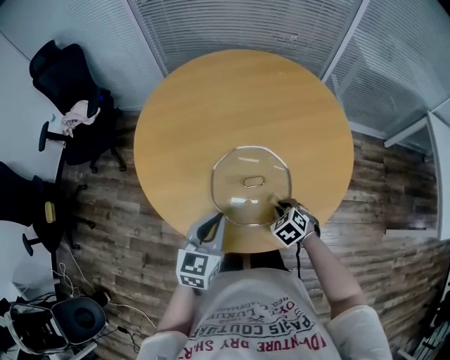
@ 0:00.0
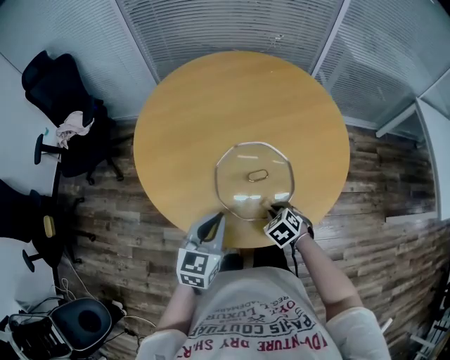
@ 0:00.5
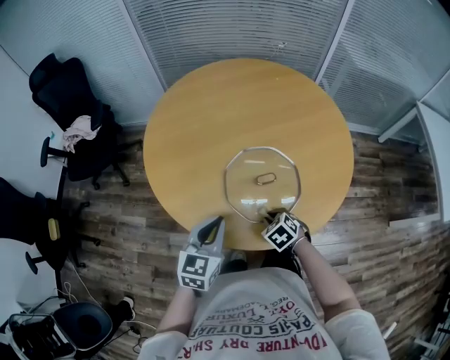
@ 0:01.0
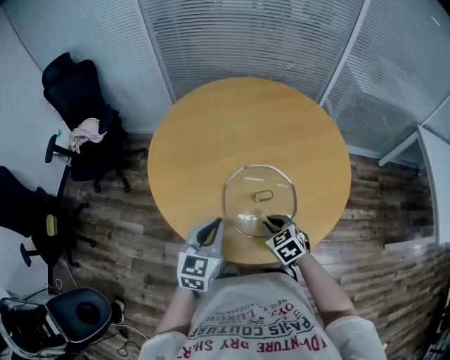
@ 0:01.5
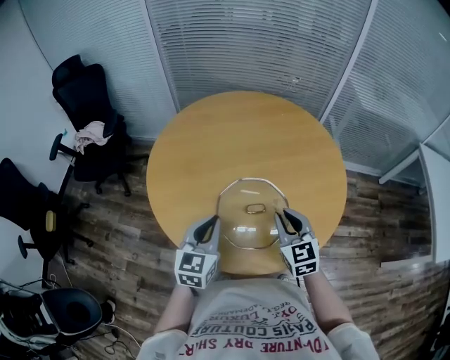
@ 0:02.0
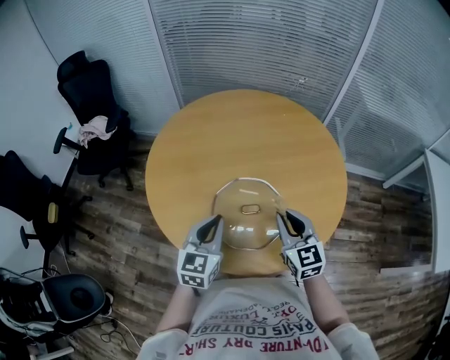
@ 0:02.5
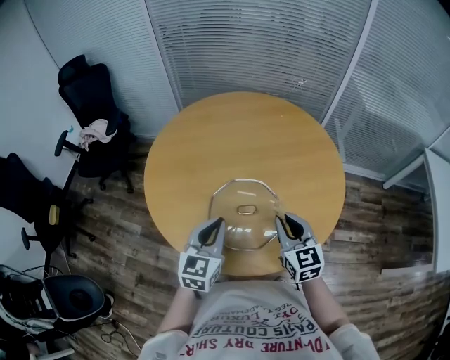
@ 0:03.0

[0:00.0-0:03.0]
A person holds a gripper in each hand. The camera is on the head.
0:00.0 to 0:01.5: The right gripper travels to the left and upward by approximately 10 cm. Meanwhile the left gripper travels to the left by roughly 5 cm.
0:01.5 to 0:03.0: The right gripper is displaced upward and to the right by approximately 20 cm, and tilts its fingers approximately 30 degrees upward. Meanwhile the left gripper travels to the right by approximately 10 cm.

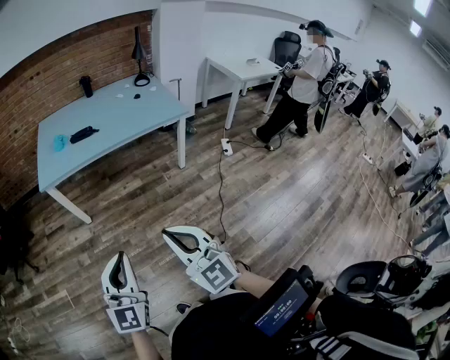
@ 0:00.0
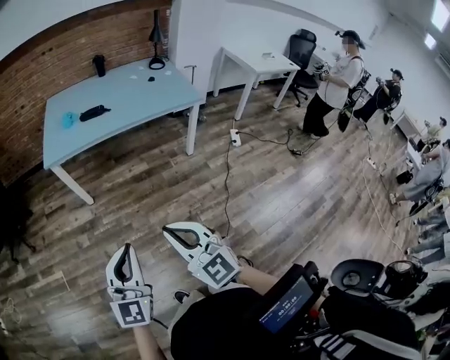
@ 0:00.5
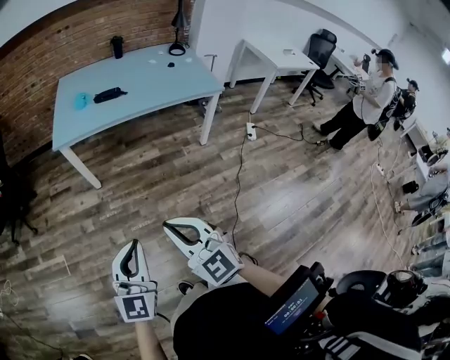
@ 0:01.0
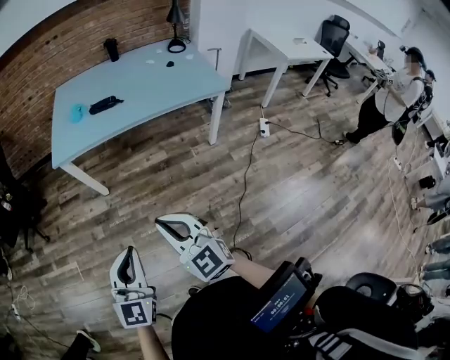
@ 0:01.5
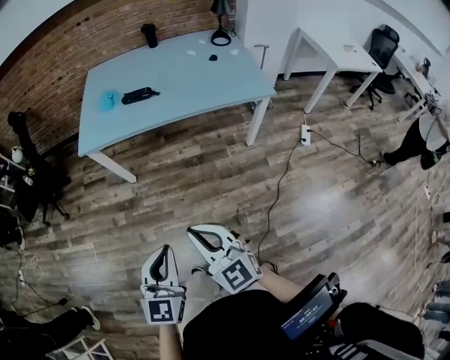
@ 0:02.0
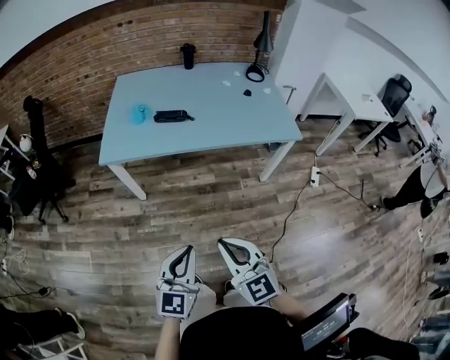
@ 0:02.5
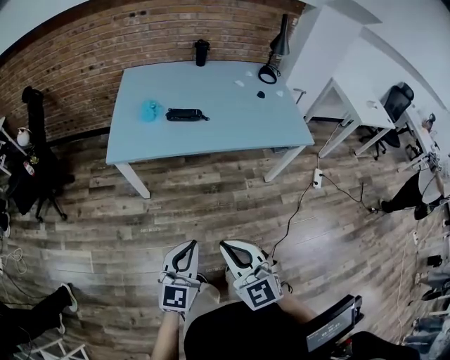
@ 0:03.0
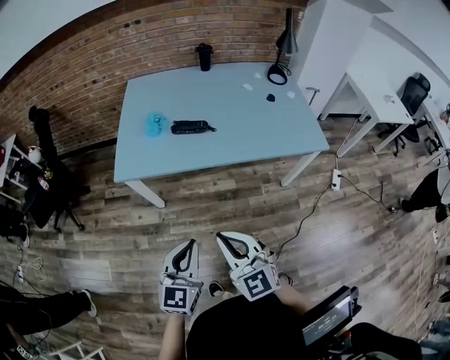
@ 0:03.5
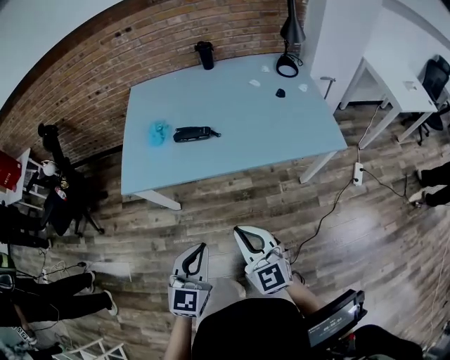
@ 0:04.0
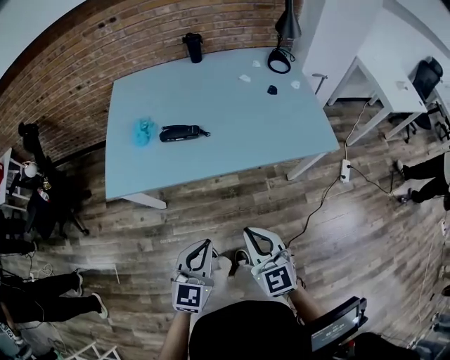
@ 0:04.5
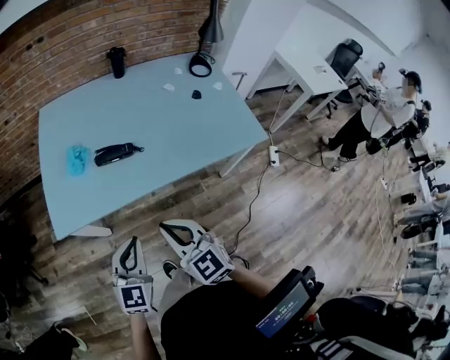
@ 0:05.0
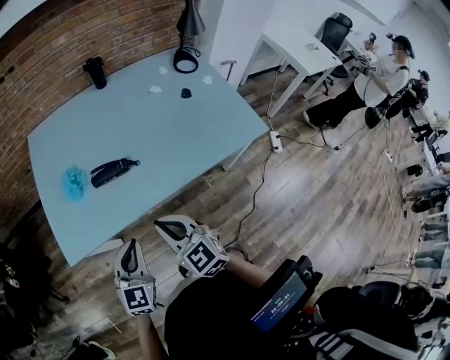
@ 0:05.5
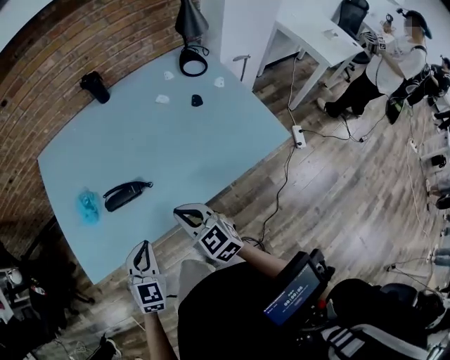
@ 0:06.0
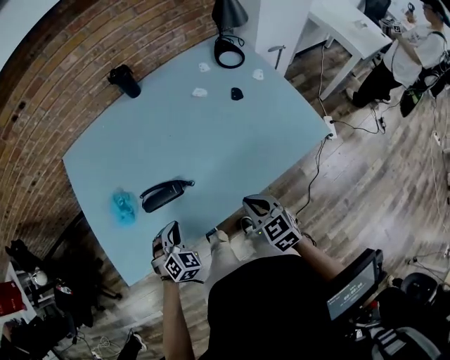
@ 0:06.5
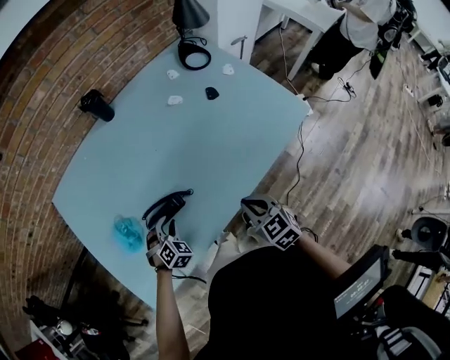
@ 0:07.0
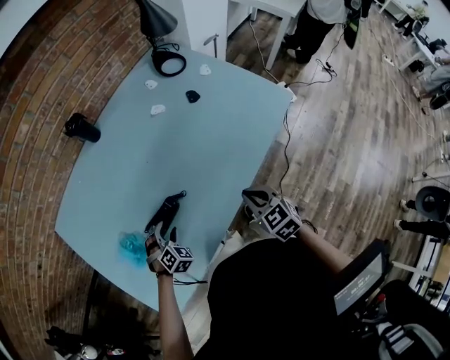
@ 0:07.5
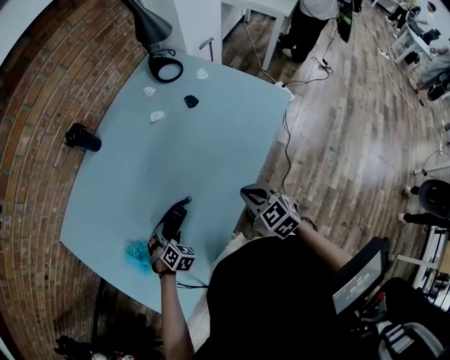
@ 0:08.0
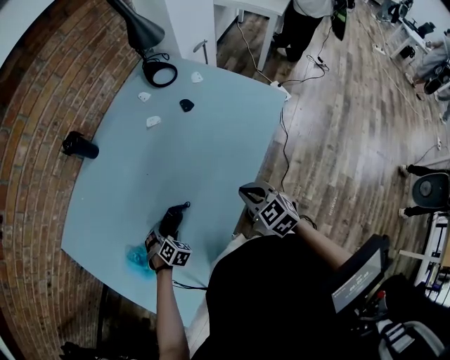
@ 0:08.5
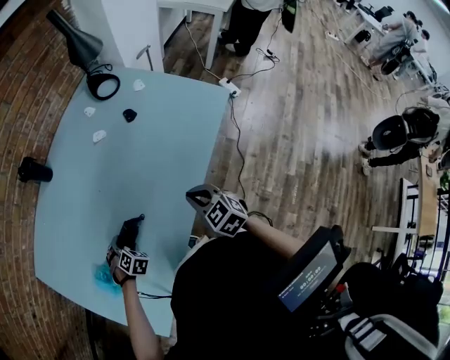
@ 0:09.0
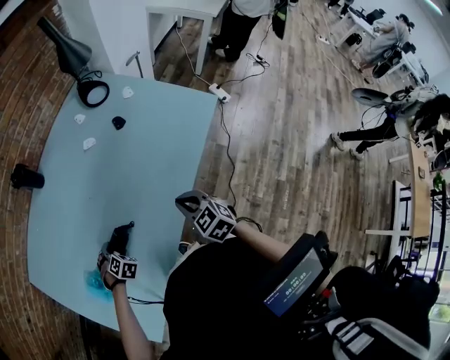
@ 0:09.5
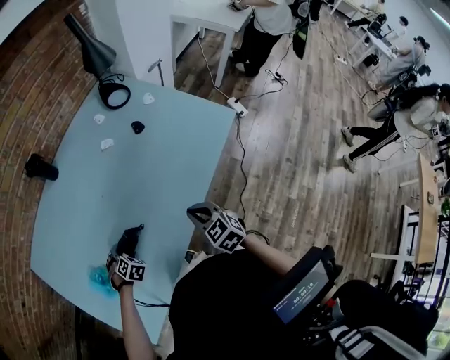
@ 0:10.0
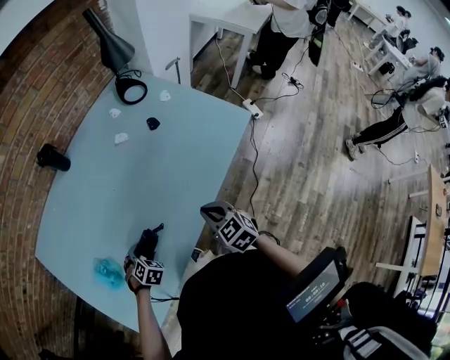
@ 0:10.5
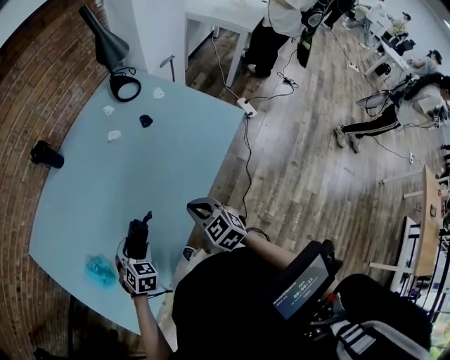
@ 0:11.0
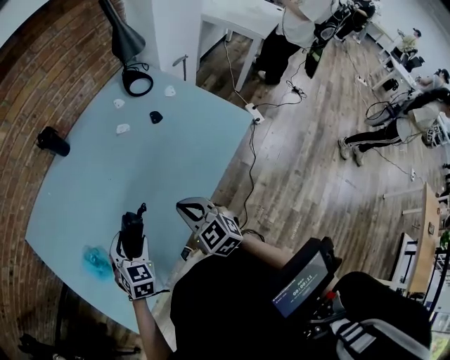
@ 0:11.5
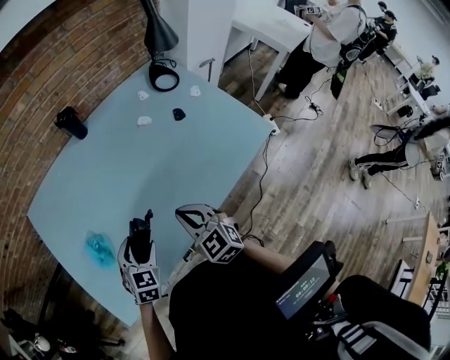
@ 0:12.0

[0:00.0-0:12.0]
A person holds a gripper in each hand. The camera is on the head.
0:00.0 to 0:02.0: The grippers both shift forward and downward by approximately 20 cm. The right gripper swivels roughly 20 degrees.
0:02.0 to 0:04.0: Both grippers move forward, some 30 cm.
0:04.0 to 0:06.0: Both grippers move forward, about 30 cm. The left gripper rotates some 20 degrees.
0:06.0 to 0:08.0: The left gripper travels forward, downward and to the left by some 30 cm, rotates around the line of its fingers by approximately 40 degrees, clockwise from behind, and opens, while the right gripper moves downward, about 5 cm, and changes its angle by some 40 degrees.
0:08.0 to 0:10.0: The grippers stay close to where they were, moving slightly.
0:10.0 to 0:12.0: The right gripper travels to the left and upward by some 15 cm, and rotates some 20 degrees. Meanwhile the left gripper moves upward and backward, approximately 20 cm, and changes its angle by roughly 50 degrees.

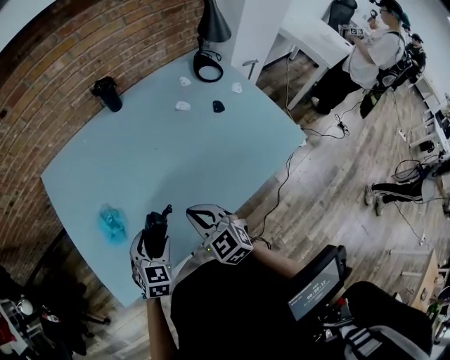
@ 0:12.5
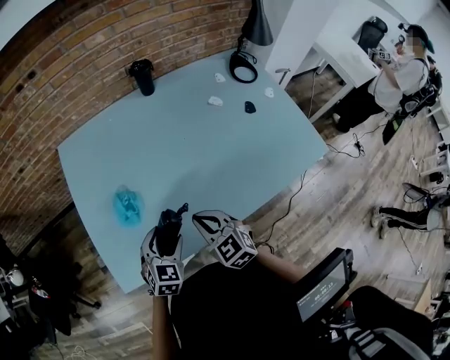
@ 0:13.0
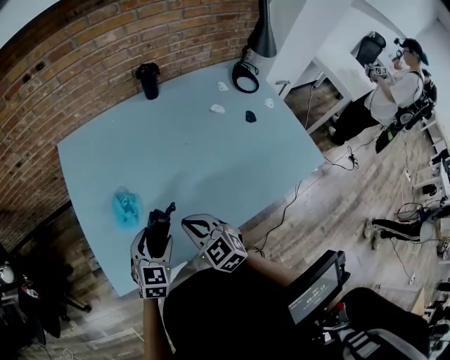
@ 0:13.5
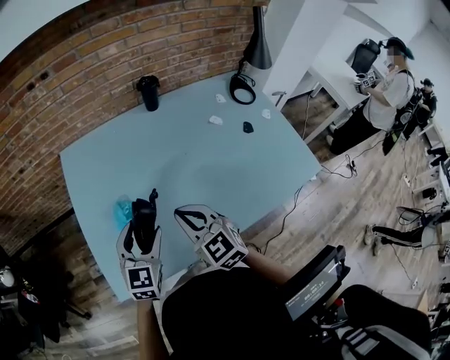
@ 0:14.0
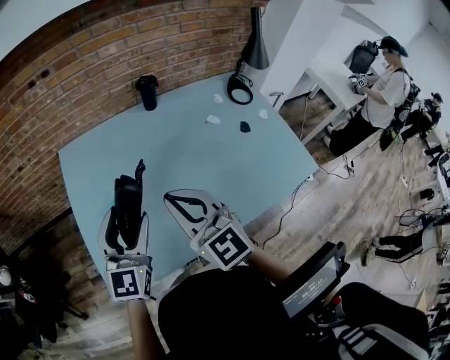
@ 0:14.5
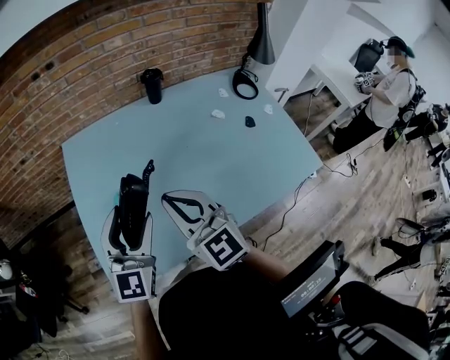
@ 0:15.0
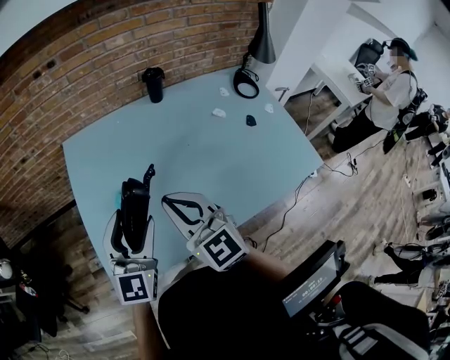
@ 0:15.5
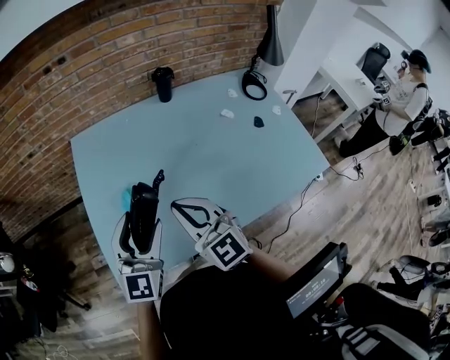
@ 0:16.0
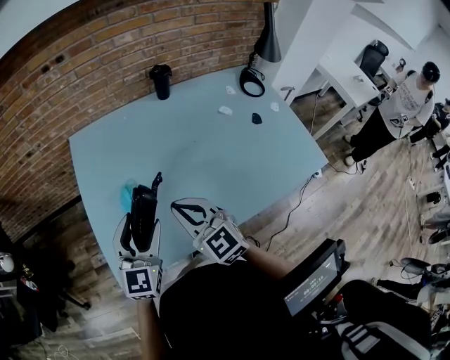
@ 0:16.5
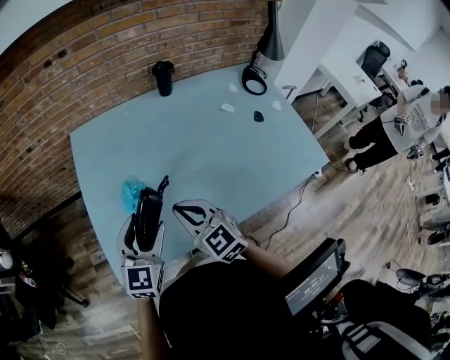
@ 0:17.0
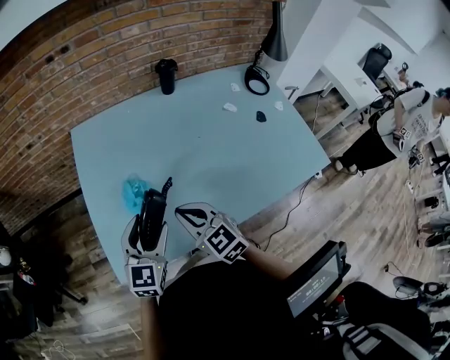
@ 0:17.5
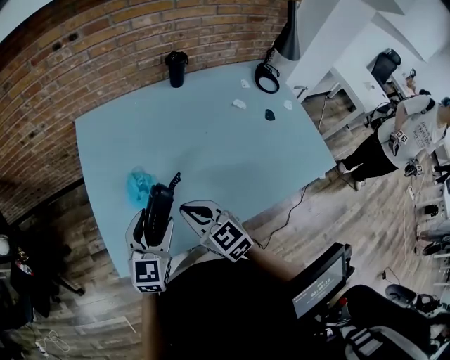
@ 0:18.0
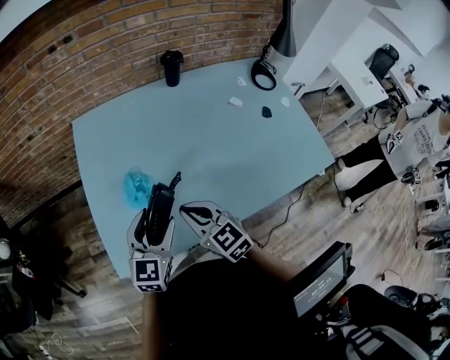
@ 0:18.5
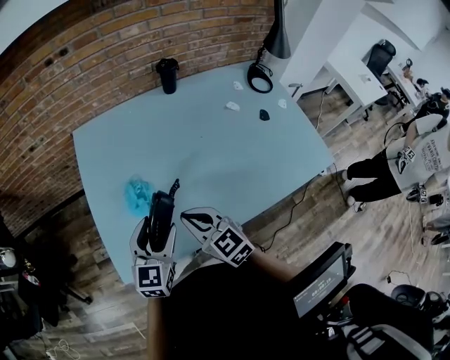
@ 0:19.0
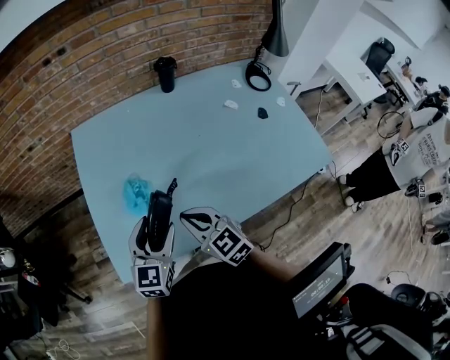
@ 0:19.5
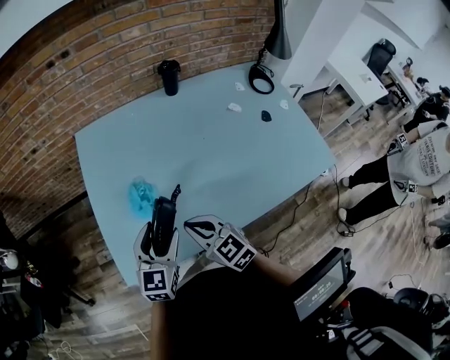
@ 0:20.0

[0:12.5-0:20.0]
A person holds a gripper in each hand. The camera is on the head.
0:12.5 to 0:14.5: The right gripper is displaced upward and to the left by roughly 20 cm, and turns by roughly 30 degrees; the left gripper moves upward, some 20 cm, and angles its fingers upward, by some 40 degrees.
0:14.5 to 0:16.5: The right gripper is displaced downward by some 10 cm; the left gripper goes some 5 cm downward.
0:16.5 to 0:18.0: Both grippers travel together downward, about 5 cm.
0:18.0 to 0:20.0: The grippers make only small movements.

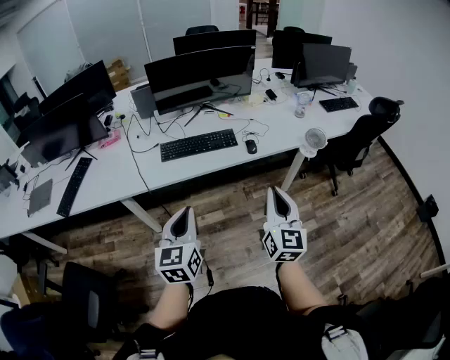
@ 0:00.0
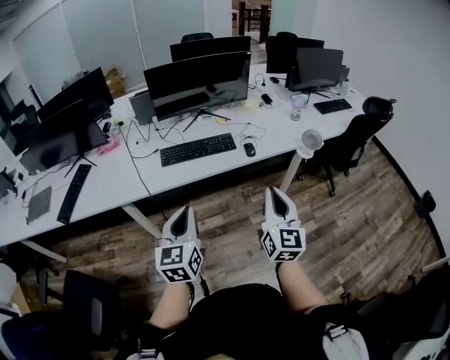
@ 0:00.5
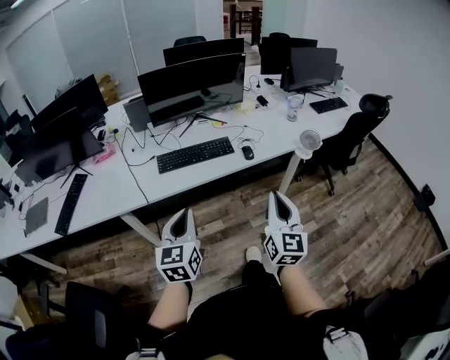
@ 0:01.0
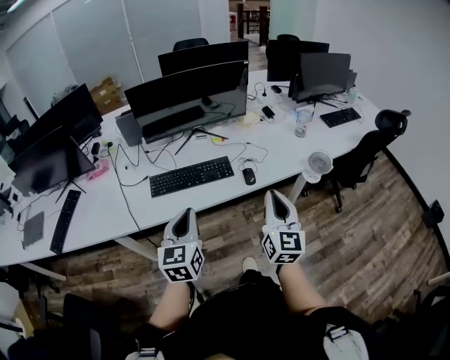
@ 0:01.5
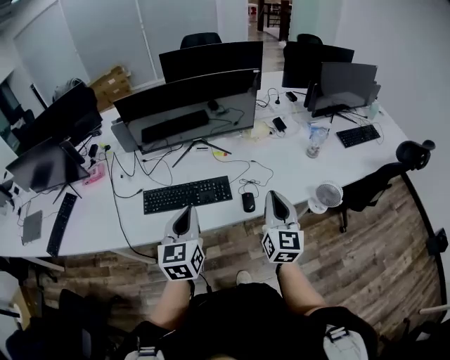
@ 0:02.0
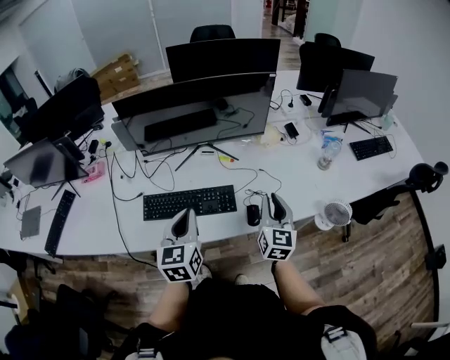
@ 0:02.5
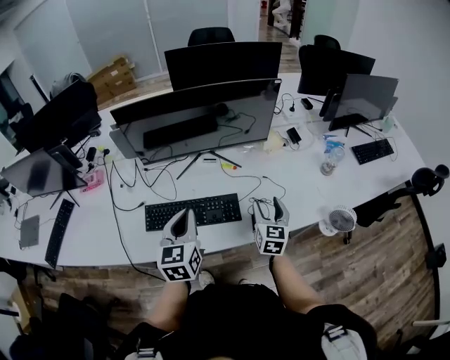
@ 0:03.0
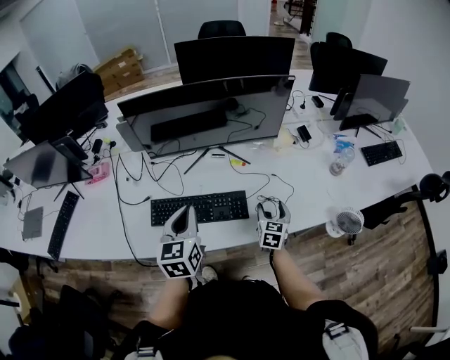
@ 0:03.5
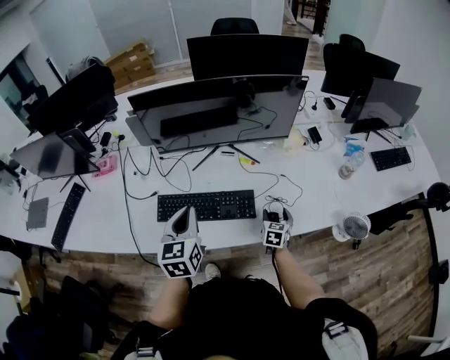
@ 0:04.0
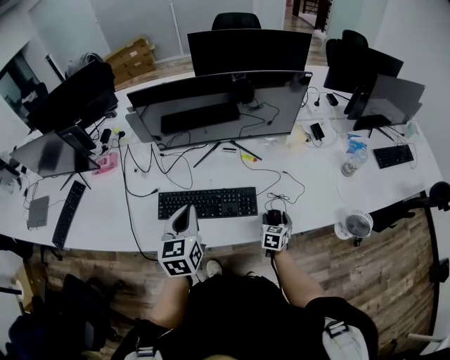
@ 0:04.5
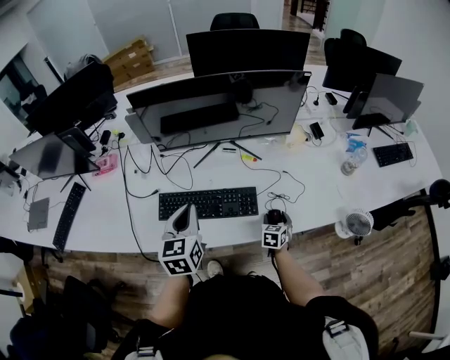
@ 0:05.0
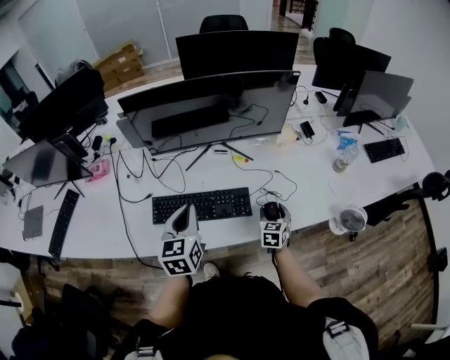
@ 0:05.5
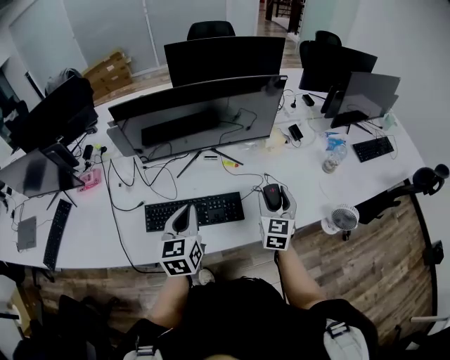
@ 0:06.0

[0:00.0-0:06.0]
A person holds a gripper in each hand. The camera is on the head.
0:00.0 to 0:02.0: The grippers both shift forward by approximately 35 cm.
0:02.0 to 0:04.0: The right gripper heads downward and forward, covering approximately 35 cm, points its fingers some 40 degrees further downward, and opens its fingers. Meanwhile the left gripper goes about 15 cm forward and to the left.
0:04.0 to 0:06.0: The right gripper travels upward by roughly 20 cm, and changes its angle by some 20 degrees.
